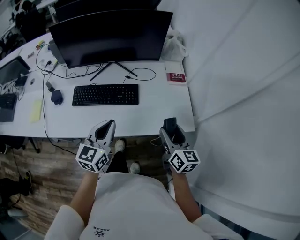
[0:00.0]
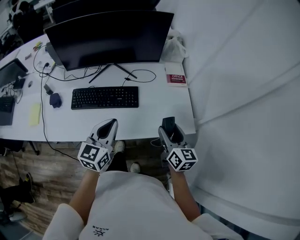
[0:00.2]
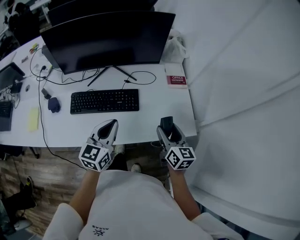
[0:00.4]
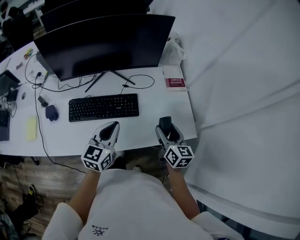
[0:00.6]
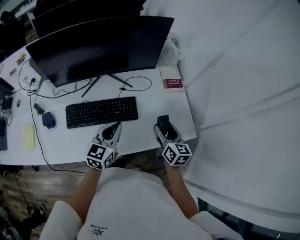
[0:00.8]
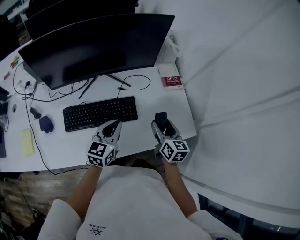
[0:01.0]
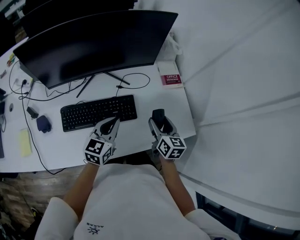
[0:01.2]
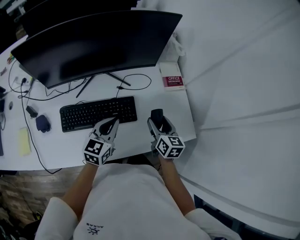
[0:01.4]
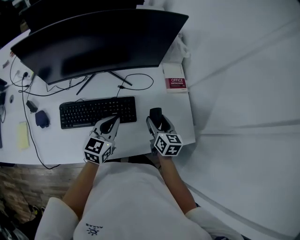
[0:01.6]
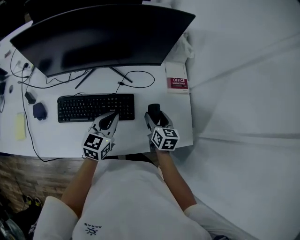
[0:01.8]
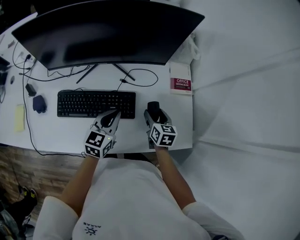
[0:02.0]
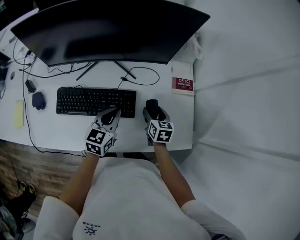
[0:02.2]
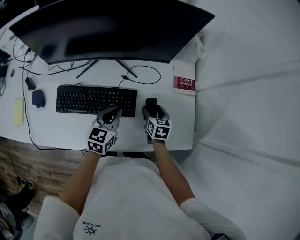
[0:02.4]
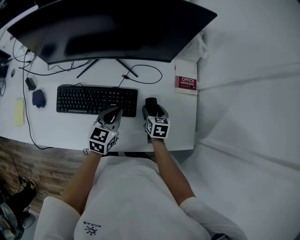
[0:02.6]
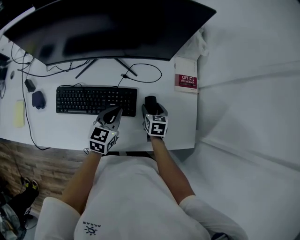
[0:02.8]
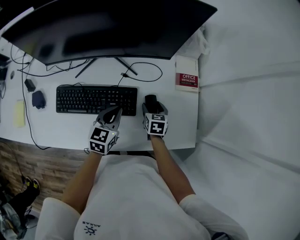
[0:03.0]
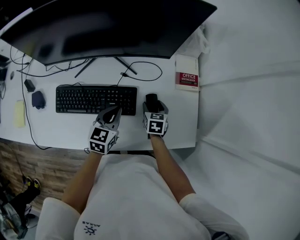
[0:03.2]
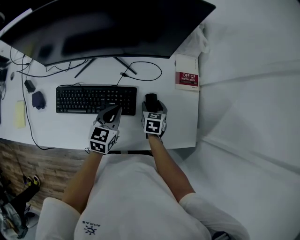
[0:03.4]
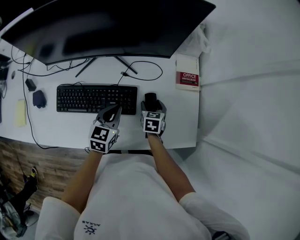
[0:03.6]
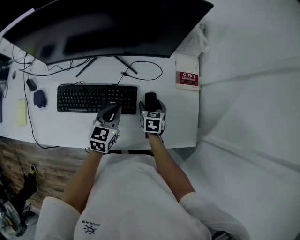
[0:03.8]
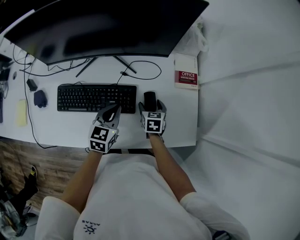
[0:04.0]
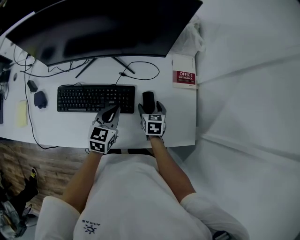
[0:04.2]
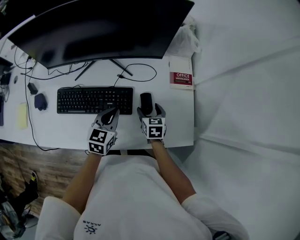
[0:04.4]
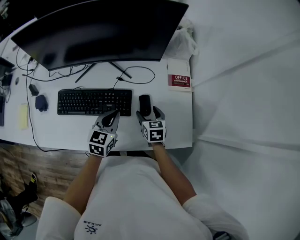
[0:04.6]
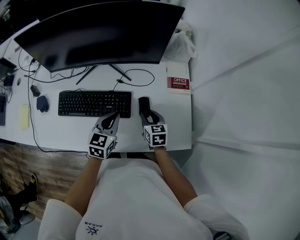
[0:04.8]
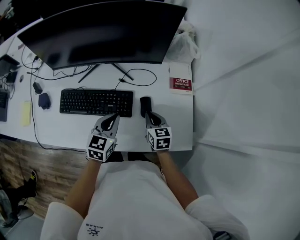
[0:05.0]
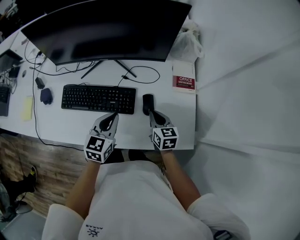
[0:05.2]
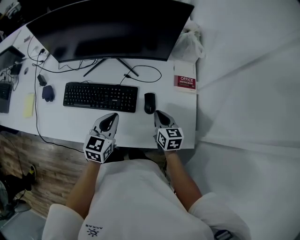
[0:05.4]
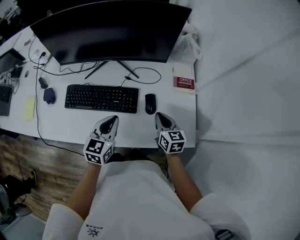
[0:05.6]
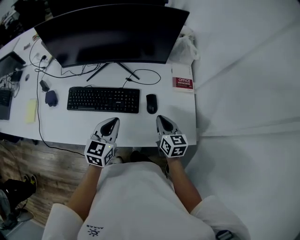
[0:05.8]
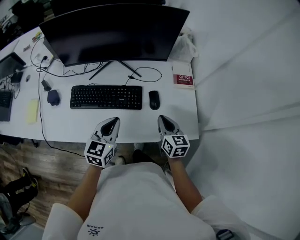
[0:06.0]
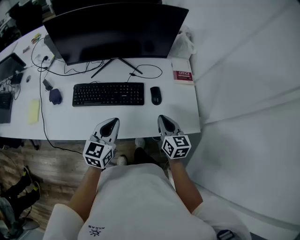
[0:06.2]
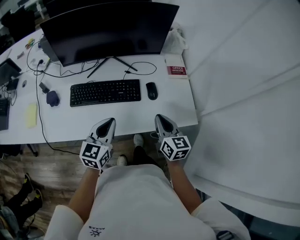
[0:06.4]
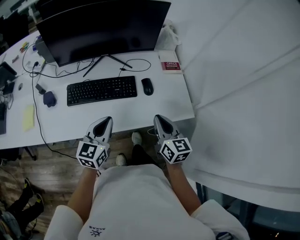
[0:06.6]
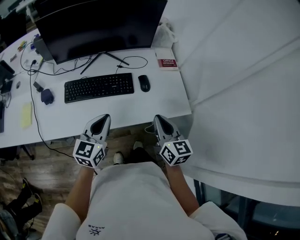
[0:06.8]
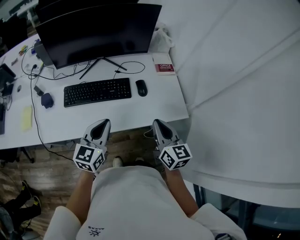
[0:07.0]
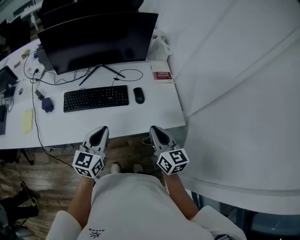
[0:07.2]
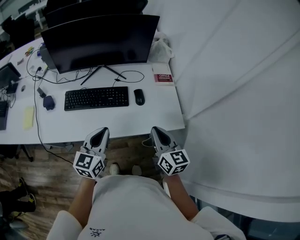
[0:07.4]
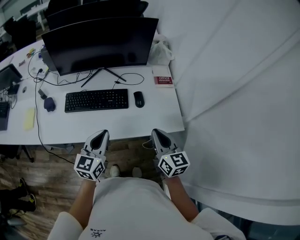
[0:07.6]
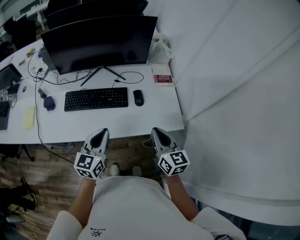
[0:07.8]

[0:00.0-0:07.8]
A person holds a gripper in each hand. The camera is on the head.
0:00.0 to 0:01.6: The right gripper shifts approximately 20 cm forward, downward and to the left. Meanwhile the left gripper shifts some 20 cm forward and downward.
0:01.6 to 0:03.2: The right gripper shifts about 15 cm downward and forward, and changes its angle by some 20 degrees. Meanwhile the left gripper shifts about 5 cm downward.
0:03.2 to 0:04.6: The right gripper changes place by some 5 cm.
0:04.6 to 0:06.2: The left gripper goes approximately 15 cm backward, upward and to the left. The right gripper heads upward and backward, covering approximately 20 cm, rotates roughly 20 degrees, and closes its fingers.
0:06.2 to 0:07.8: The left gripper heads backward, covering approximately 5 cm, while the right gripper goes roughly 15 cm backward and upward.

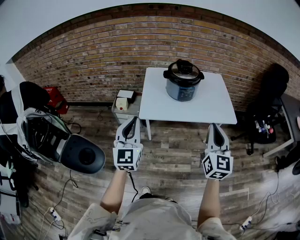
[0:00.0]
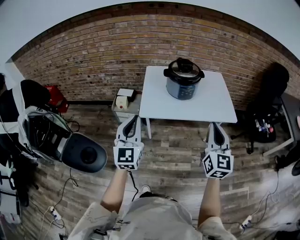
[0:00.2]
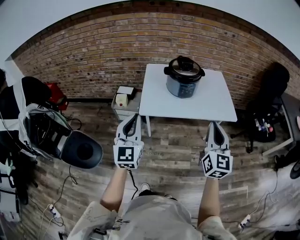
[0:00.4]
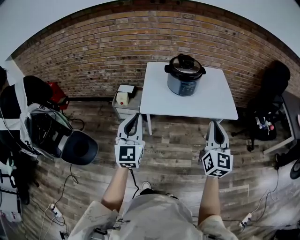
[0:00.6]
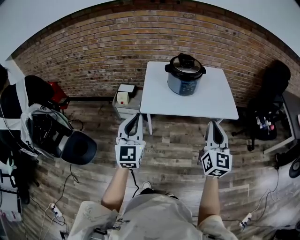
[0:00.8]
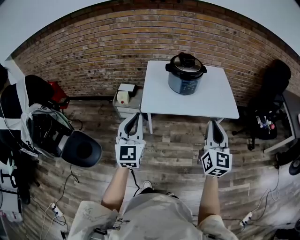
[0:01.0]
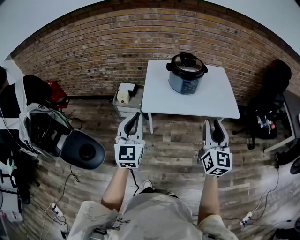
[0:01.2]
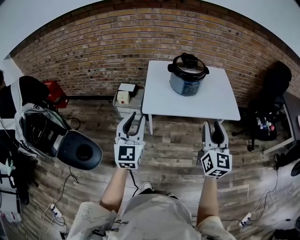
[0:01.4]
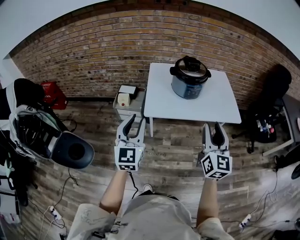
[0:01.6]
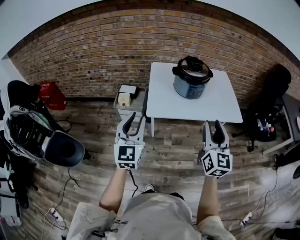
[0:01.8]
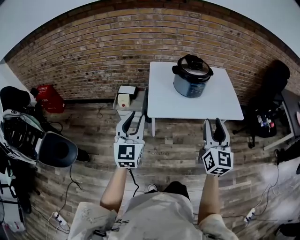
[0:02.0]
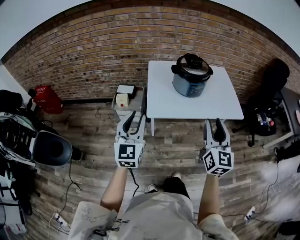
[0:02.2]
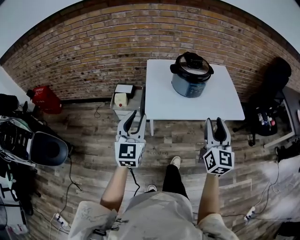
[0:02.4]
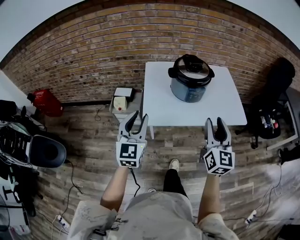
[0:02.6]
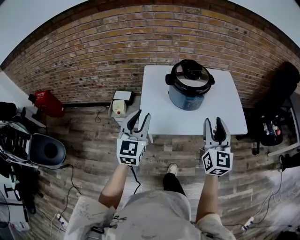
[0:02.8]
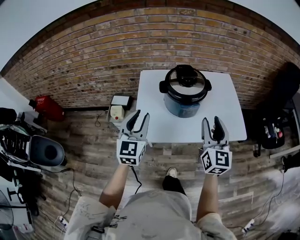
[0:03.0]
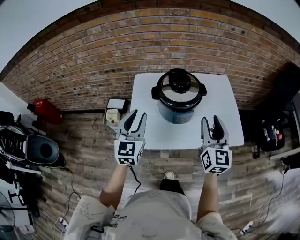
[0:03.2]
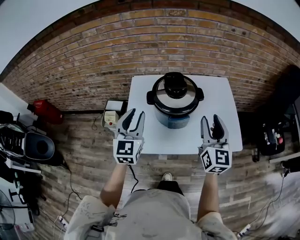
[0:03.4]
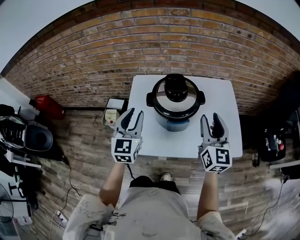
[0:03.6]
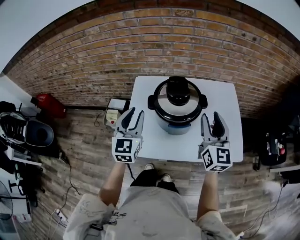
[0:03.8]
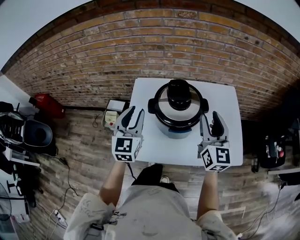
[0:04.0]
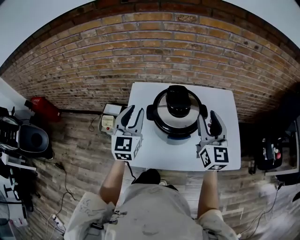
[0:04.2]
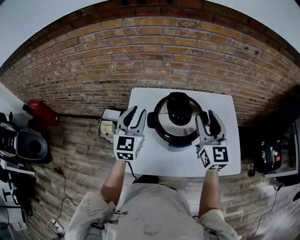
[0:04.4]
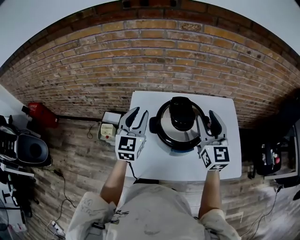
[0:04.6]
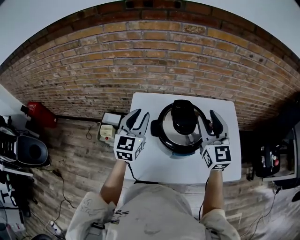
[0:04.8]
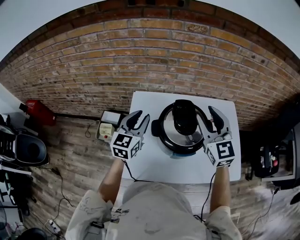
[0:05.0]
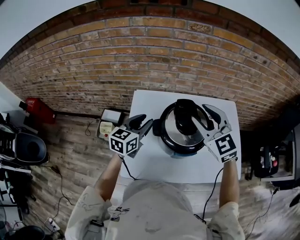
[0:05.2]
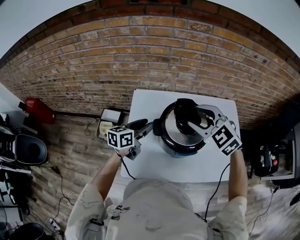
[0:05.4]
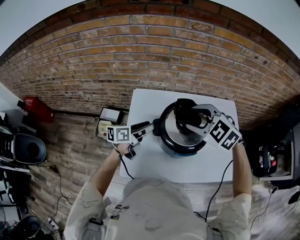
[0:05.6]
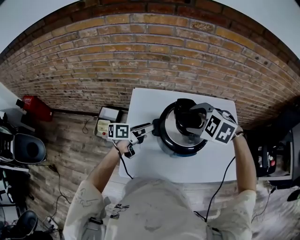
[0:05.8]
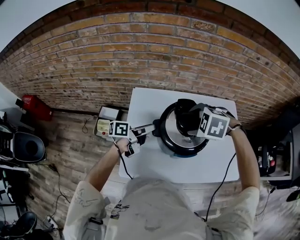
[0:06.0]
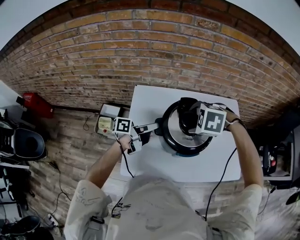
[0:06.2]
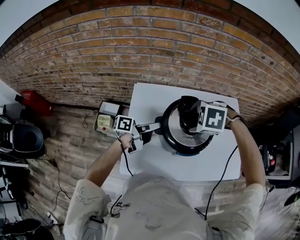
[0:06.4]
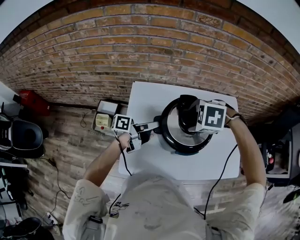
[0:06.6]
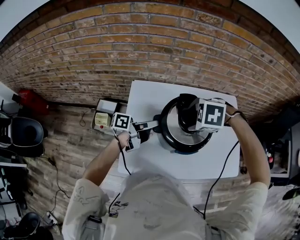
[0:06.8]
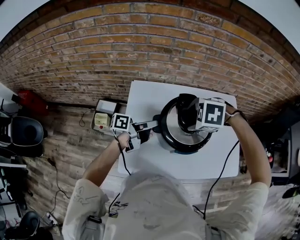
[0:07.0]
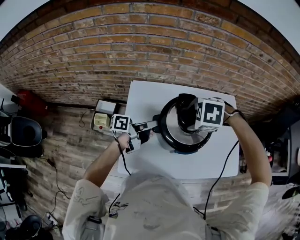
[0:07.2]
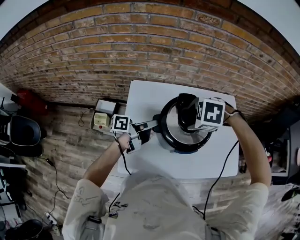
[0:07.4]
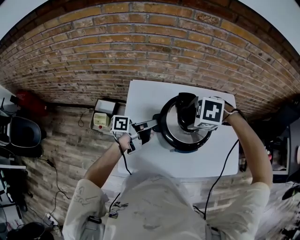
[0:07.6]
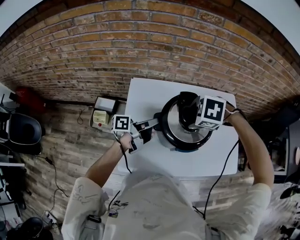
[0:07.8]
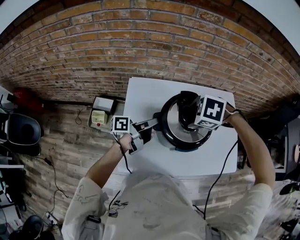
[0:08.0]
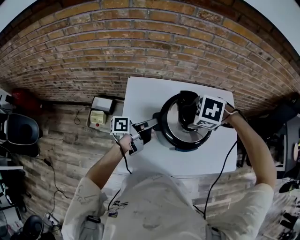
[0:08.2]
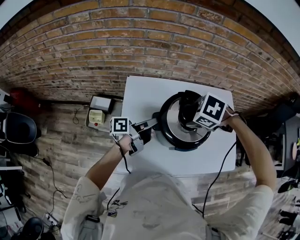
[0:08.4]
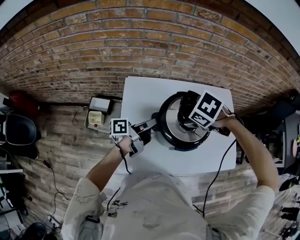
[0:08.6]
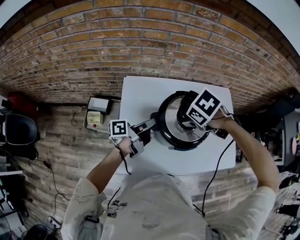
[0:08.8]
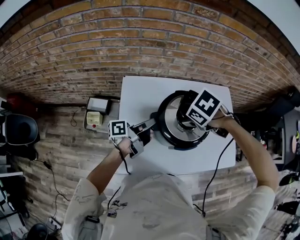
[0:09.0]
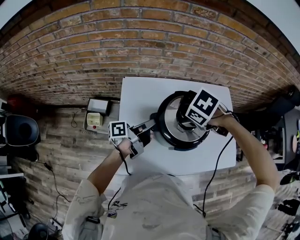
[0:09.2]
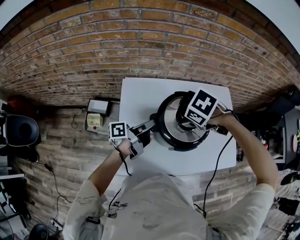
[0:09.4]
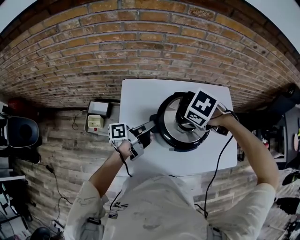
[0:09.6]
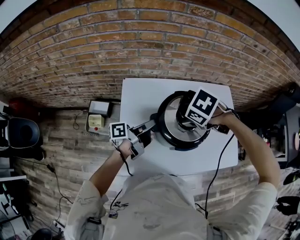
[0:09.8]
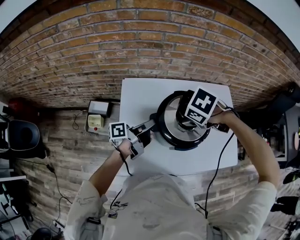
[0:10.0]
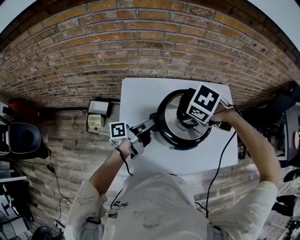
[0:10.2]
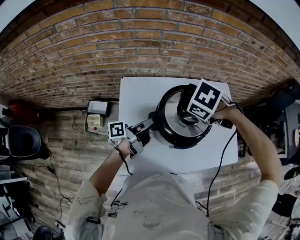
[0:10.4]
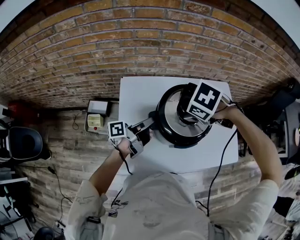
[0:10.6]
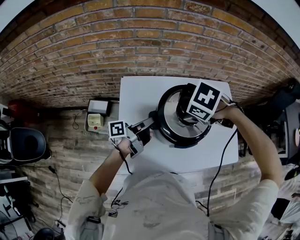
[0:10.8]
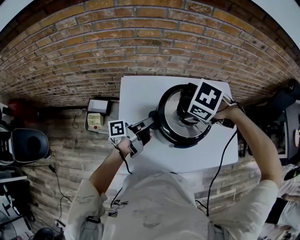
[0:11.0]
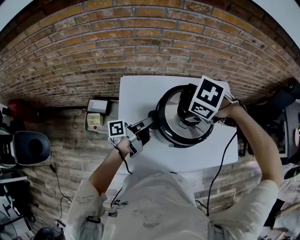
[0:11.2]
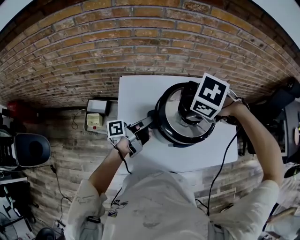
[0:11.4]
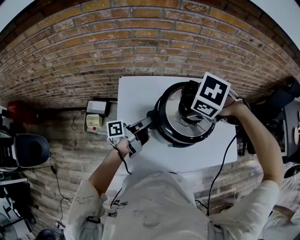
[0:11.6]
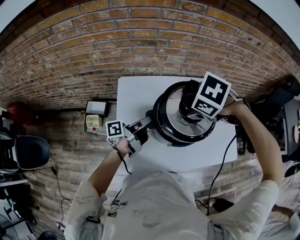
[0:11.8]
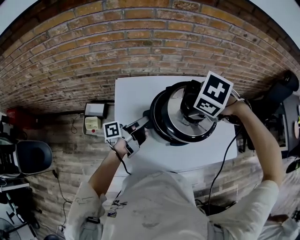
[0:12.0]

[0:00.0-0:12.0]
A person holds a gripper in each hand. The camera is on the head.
0:00.0 to 0:01.6: The left gripper opens up; the right gripper is displaced to the left by approximately 5 cm, and opens up.
0:01.6 to 0:03.0: The grippers both shift forward by approximately 20 cm.
0:03.0 to 0:04.4: Both grippers travel together forward, some 20 cm.
0:04.4 to 0:06.0: The left gripper is displaced downward by roughly 15 cm, and rotates around the line of its fingers by some 70 degrees, counterclockwise from behind, while the right gripper heads downward and to the left, covering approximately 15 cm, and angles its fingers downward, by some 70 degrees.
0:06.0 to 0:07.6: The left gripper closes up.
0:07.6 to 0:09.0: The right gripper changes its angle by about 30 degrees.
0:09.0 to 0:10.4: The grippers make only small movements.
0:10.4 to 0:12.0: The grippers move only a little.

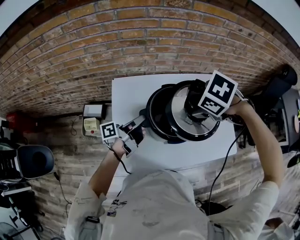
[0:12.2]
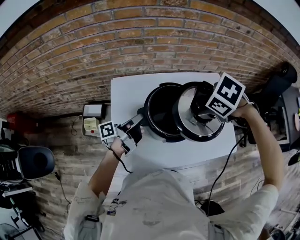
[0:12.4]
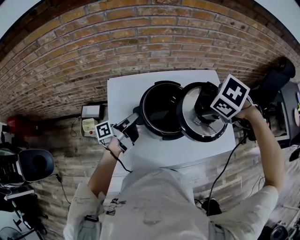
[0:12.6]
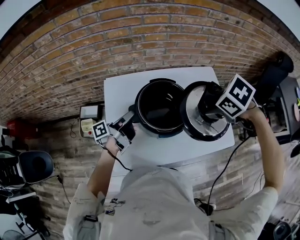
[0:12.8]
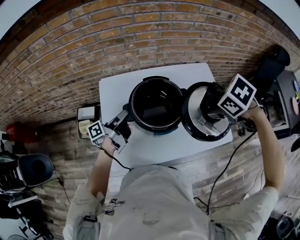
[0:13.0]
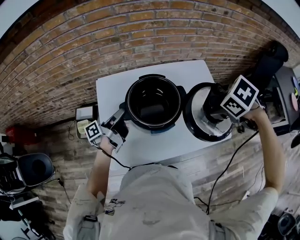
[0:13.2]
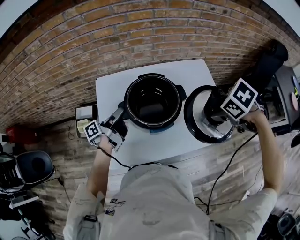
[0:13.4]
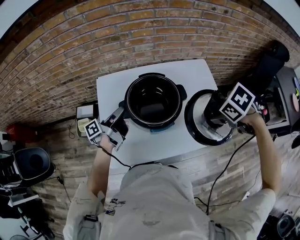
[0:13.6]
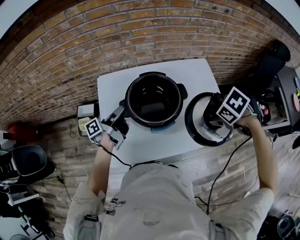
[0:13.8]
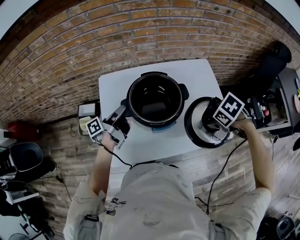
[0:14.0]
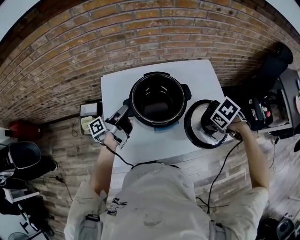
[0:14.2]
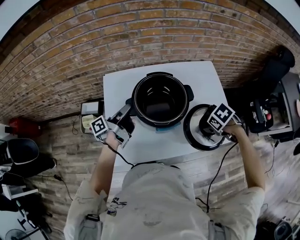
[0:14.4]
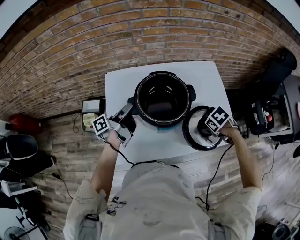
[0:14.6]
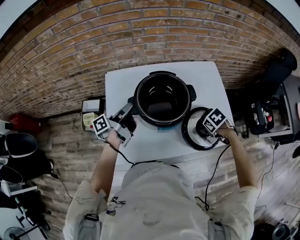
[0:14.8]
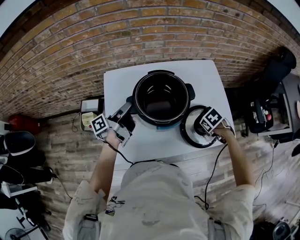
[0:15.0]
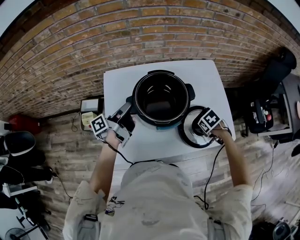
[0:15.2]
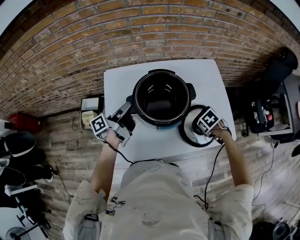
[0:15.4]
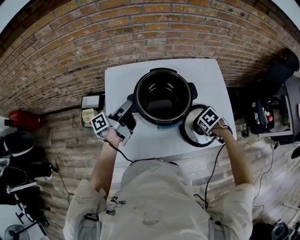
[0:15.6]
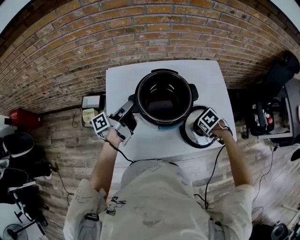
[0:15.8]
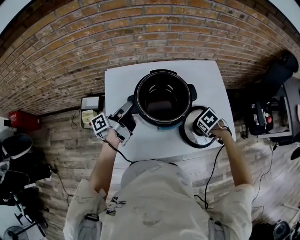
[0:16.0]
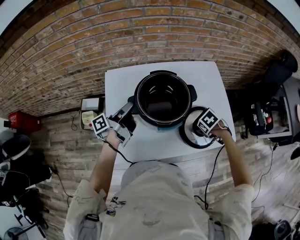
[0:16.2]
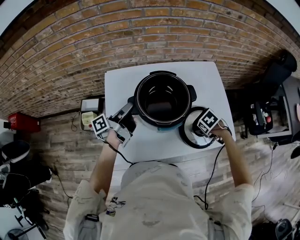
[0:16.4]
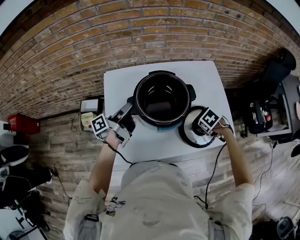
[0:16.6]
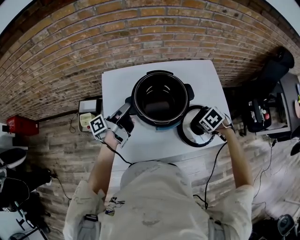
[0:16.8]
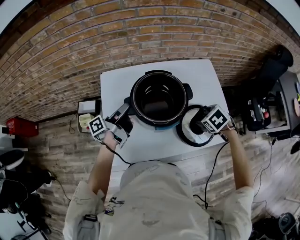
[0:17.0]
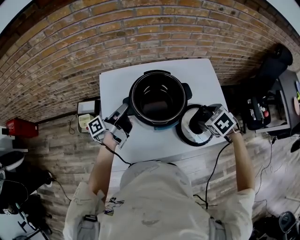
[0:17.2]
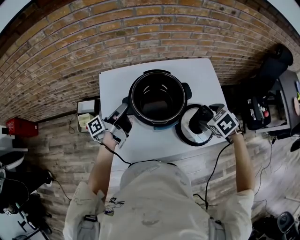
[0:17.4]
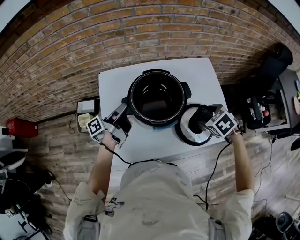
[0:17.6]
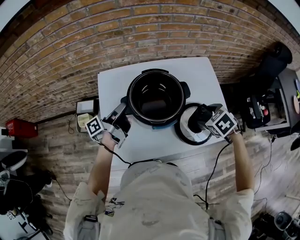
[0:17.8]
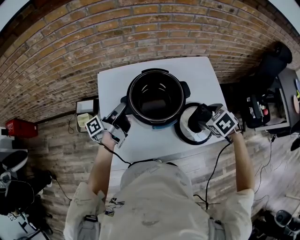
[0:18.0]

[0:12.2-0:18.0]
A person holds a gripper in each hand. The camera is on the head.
0:12.2 to 0:13.6: The right gripper shifts by about 20 cm.
0:13.6 to 0:15.0: The right gripper heads downward, covering about 20 cm.
0:15.0 to 0:16.6: The grippers move only a little.
0:16.6 to 0:18.0: The right gripper heads upward, covering about 10 cm.
